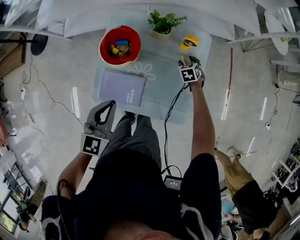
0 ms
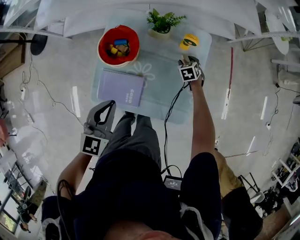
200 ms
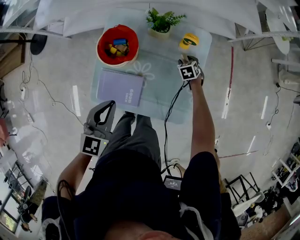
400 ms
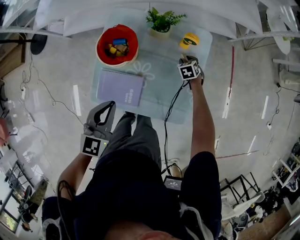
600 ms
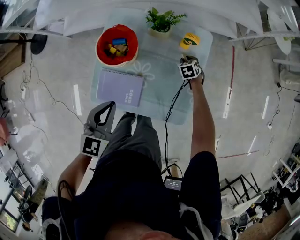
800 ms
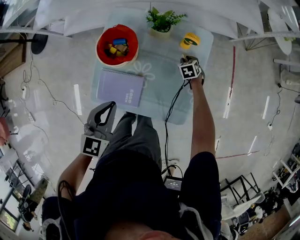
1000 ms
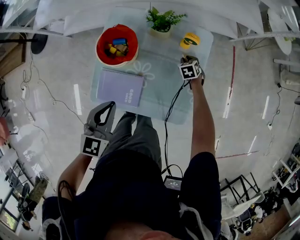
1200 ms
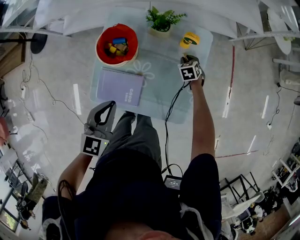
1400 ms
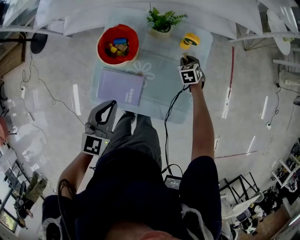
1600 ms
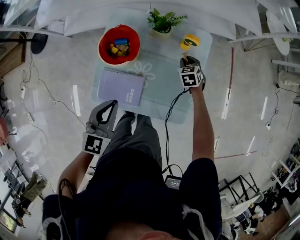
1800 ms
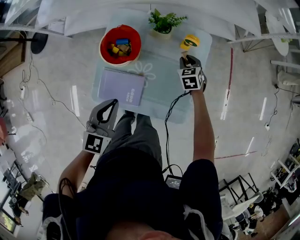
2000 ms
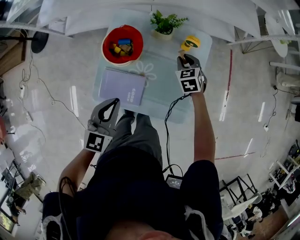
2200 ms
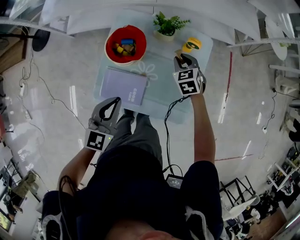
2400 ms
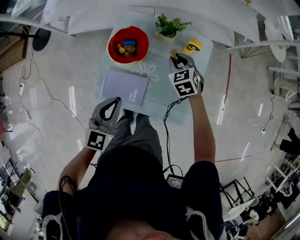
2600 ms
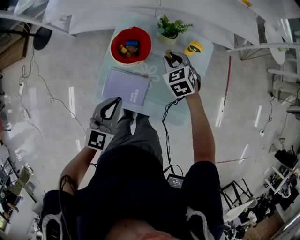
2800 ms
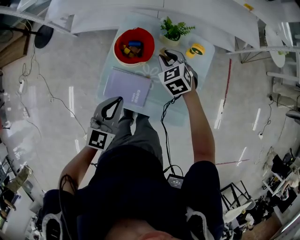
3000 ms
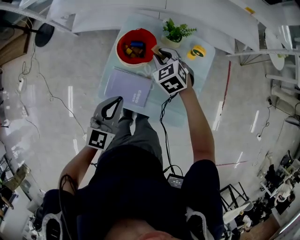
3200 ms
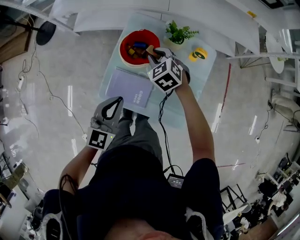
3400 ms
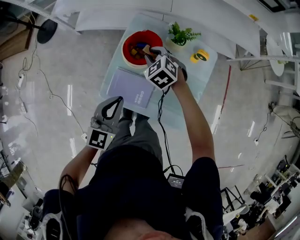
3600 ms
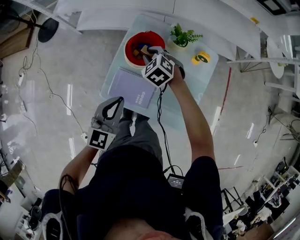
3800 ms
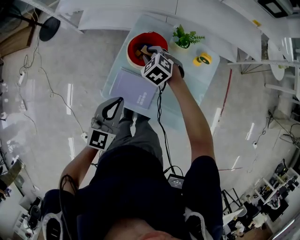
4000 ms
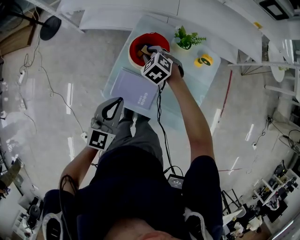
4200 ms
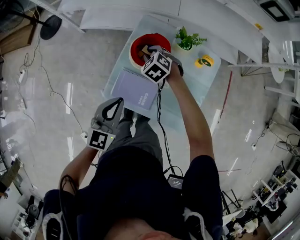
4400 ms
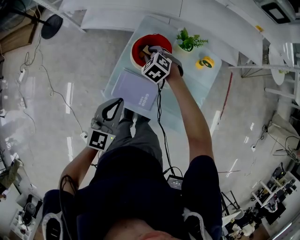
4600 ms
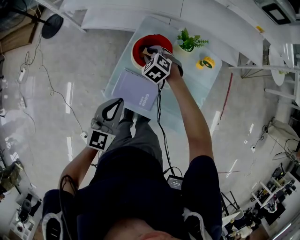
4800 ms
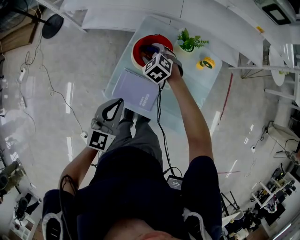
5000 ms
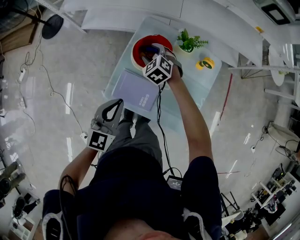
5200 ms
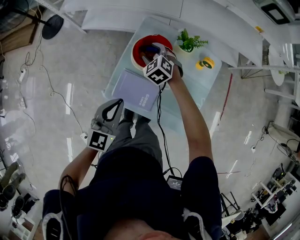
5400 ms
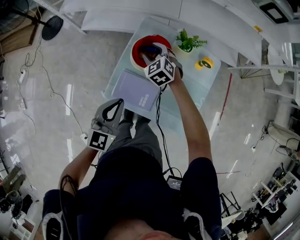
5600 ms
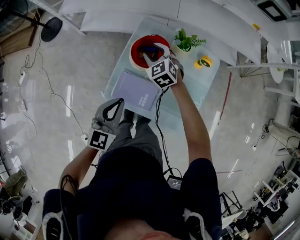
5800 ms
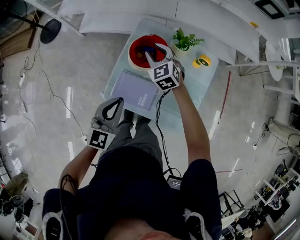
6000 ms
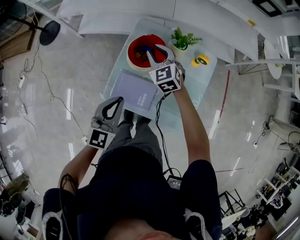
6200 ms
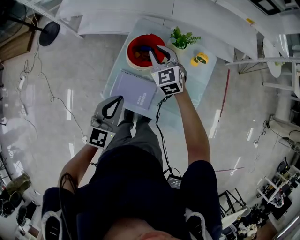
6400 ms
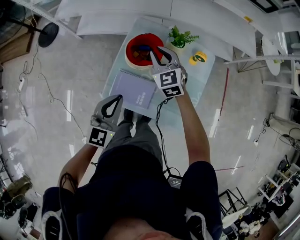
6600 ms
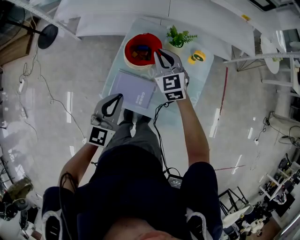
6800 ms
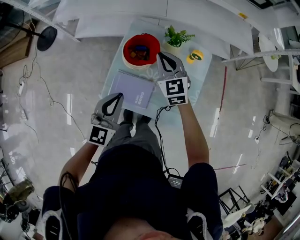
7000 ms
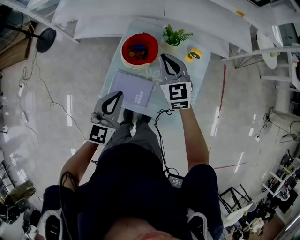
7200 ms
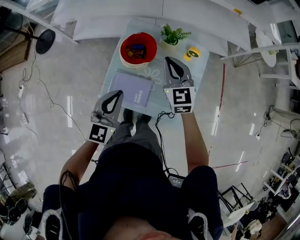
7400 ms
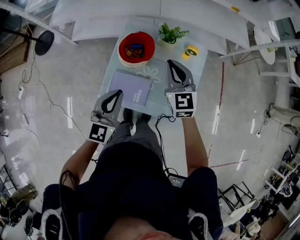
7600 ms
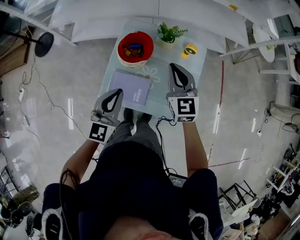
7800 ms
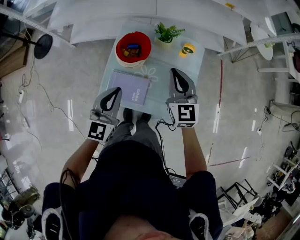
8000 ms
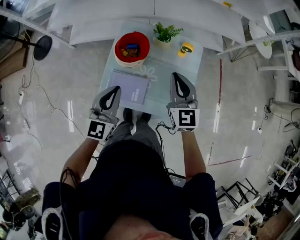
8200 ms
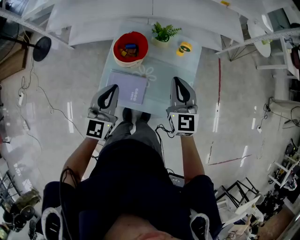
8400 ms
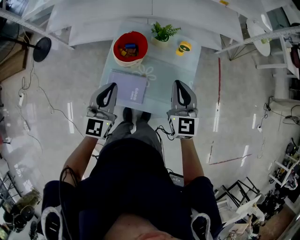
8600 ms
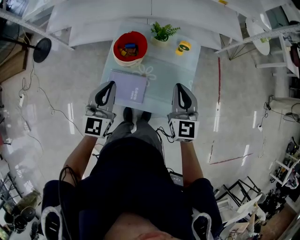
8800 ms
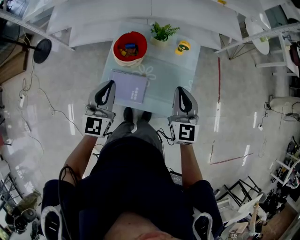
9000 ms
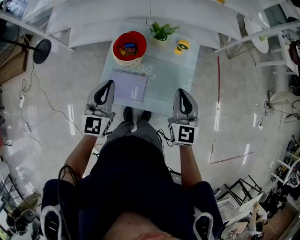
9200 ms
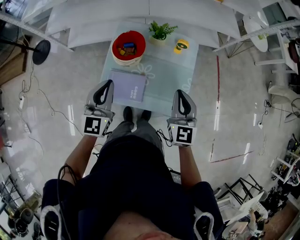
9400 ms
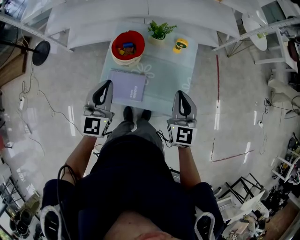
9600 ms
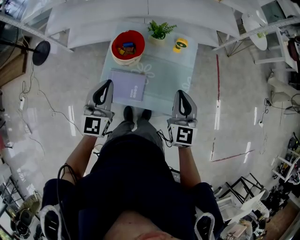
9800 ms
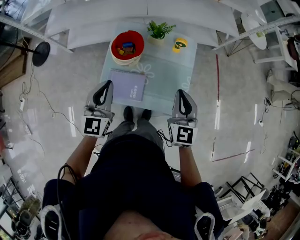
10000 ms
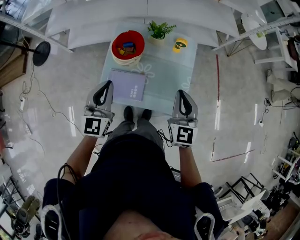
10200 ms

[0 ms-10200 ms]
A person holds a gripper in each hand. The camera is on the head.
0 ms to 1400 ms: The right gripper closes its fingers.
1400 ms to 3000 ms: The right gripper moves upward and to the left, approximately 30 cm, and turns by roughly 30 degrees.
3000 ms to 4400 ms: The left gripper travels to the left by some 5 cm; the right gripper travels to the left by roughly 15 cm, and swivels roughly 20 degrees.
4400 ms to 5800 ms: The grippers stay close to where they were, moving slightly.
5800 ms to 7200 ms: The right gripper goes roughly 15 cm upward, to the right and backward, changes its angle by about 30 degrees, and closes.
7200 ms to 8800 ms: The right gripper travels backward and to the right by about 20 cm, and swivels approximately 20 degrees.
8800 ms to 10200 ms: The right gripper ends up roughly 5 cm from where it was.

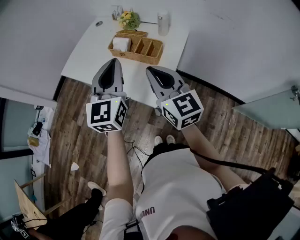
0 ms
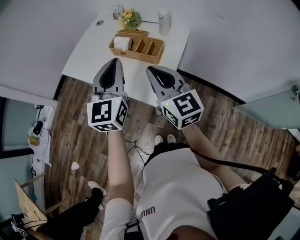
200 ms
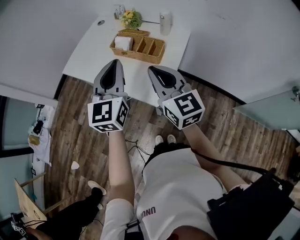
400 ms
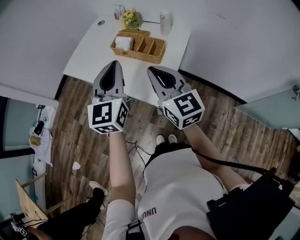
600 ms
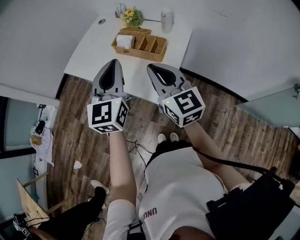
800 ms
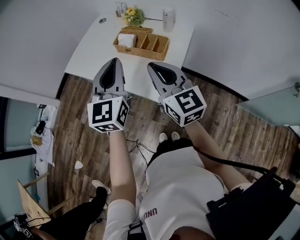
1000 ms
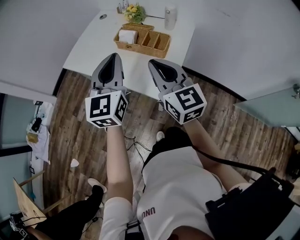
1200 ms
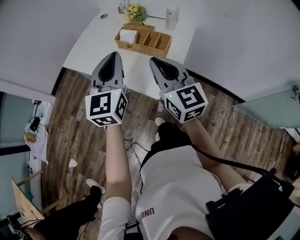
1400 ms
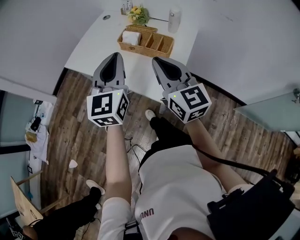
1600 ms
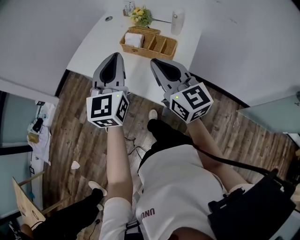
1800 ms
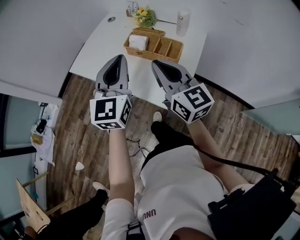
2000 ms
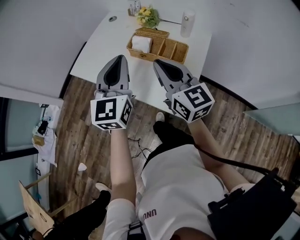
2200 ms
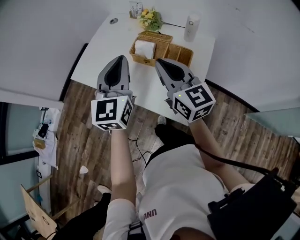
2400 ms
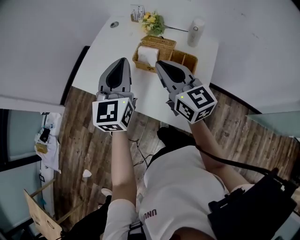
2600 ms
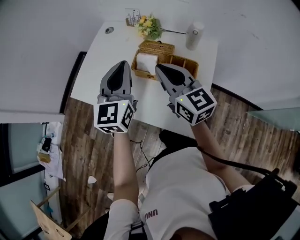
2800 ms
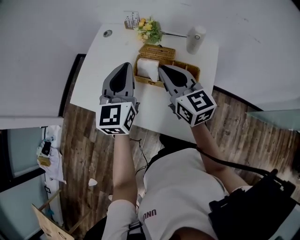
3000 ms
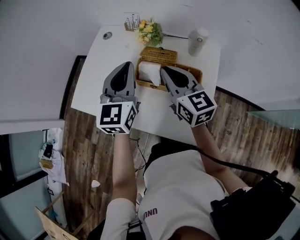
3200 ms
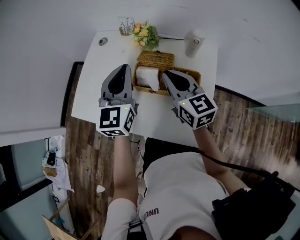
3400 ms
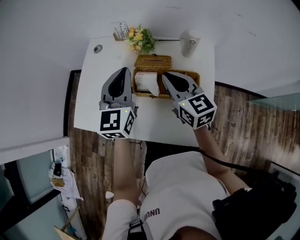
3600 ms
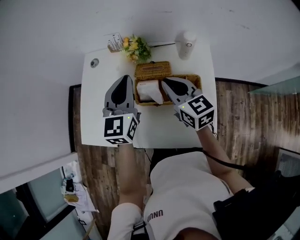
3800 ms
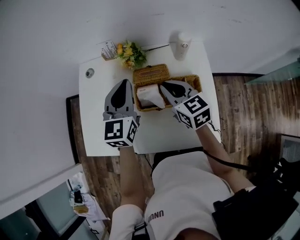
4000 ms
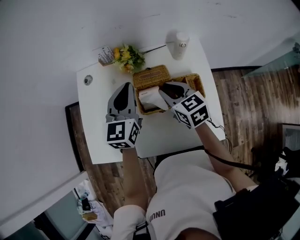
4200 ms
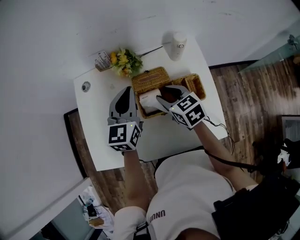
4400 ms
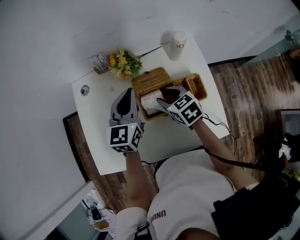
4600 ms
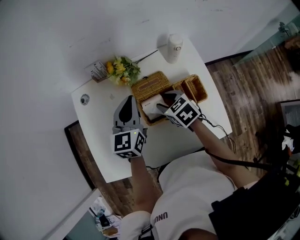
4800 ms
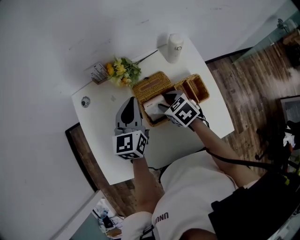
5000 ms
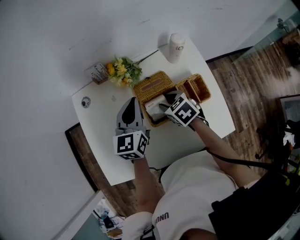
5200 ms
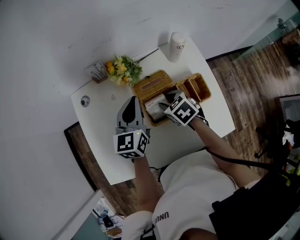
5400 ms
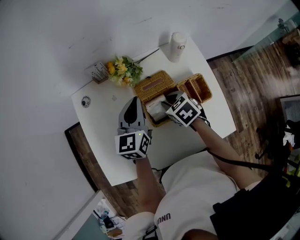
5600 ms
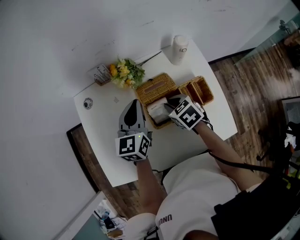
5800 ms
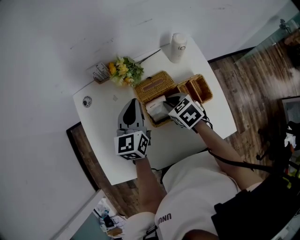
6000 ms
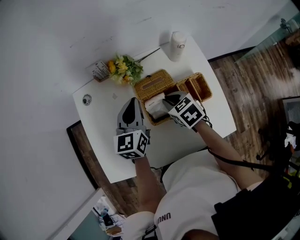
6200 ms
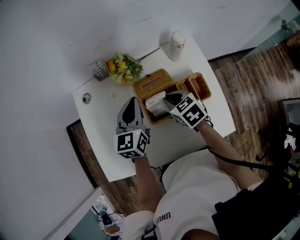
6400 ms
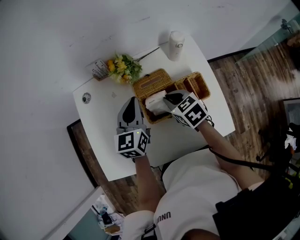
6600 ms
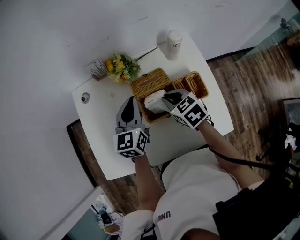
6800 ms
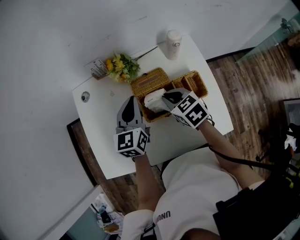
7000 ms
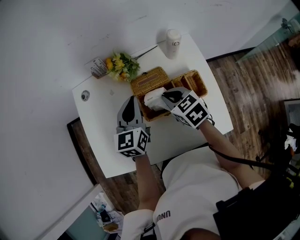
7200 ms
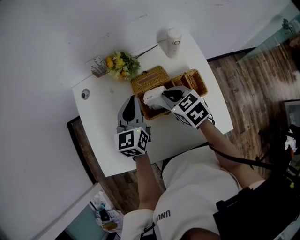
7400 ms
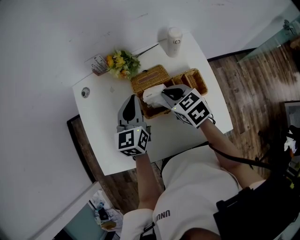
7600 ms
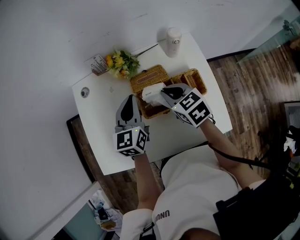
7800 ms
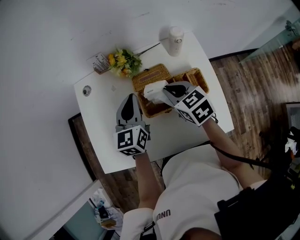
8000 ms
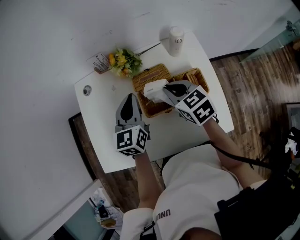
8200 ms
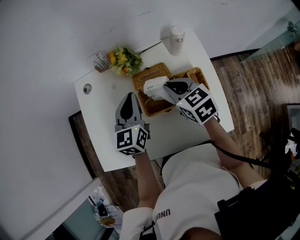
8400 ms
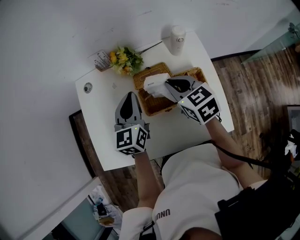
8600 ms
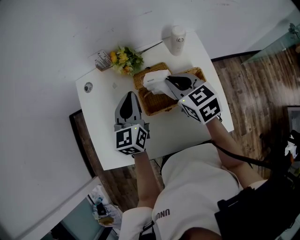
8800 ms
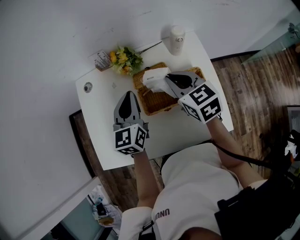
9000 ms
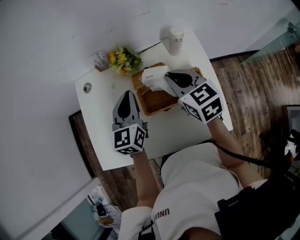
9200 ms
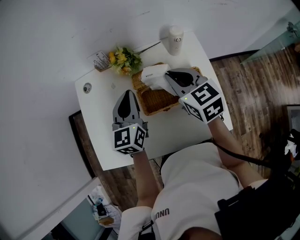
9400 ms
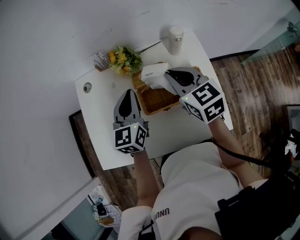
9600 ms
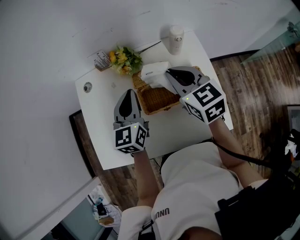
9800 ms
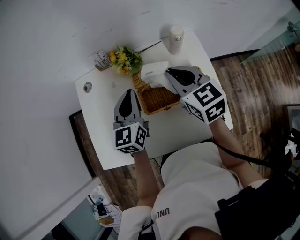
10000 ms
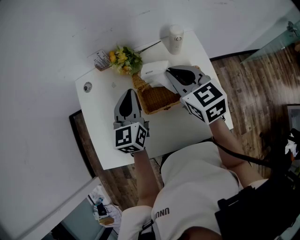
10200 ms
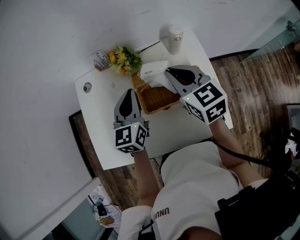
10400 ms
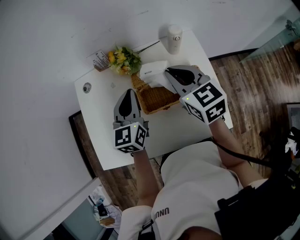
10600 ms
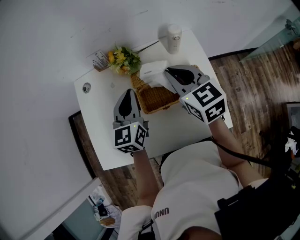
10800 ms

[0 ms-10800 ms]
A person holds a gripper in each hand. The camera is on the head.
0 ms to 1600 ms: The left gripper moves roughly 5 cm.
1600 ms to 3000 ms: Both grippers move forward, about 20 cm.
3000 ms to 4600 ms: The right gripper is displaced downward and forward by some 20 cm, tips its fingers downward by approximately 40 degrees, and opens up, while the left gripper moves forward and downward, roughly 20 cm, and swivels some 30 degrees.
4600 ms to 6200 ms: The right gripper closes its fingers.
6200 ms to 7800 ms: The right gripper heads upward, covering approximately 5 cm.
7800 ms to 9200 ms: The right gripper heads upward, covering some 5 cm.
9200 ms to 10800 ms: The grippers stay close to where they were, moving slightly.

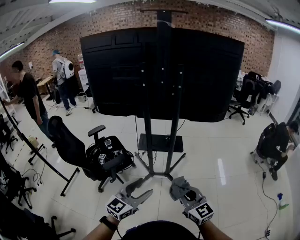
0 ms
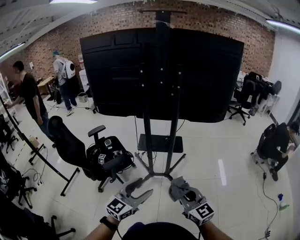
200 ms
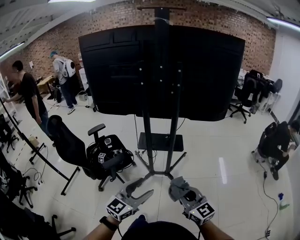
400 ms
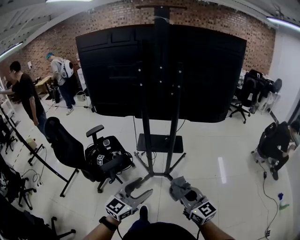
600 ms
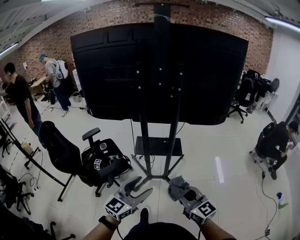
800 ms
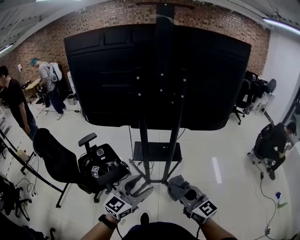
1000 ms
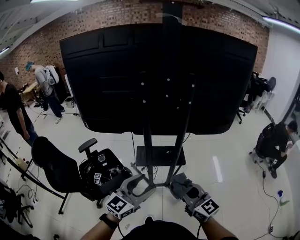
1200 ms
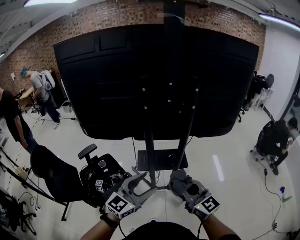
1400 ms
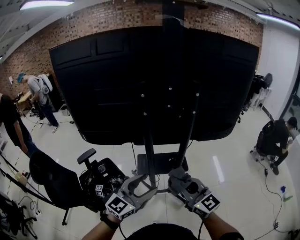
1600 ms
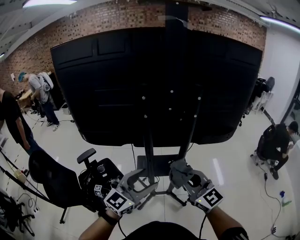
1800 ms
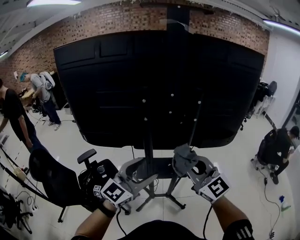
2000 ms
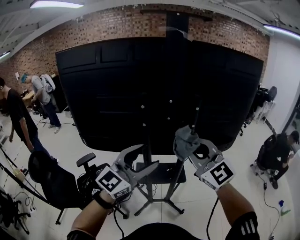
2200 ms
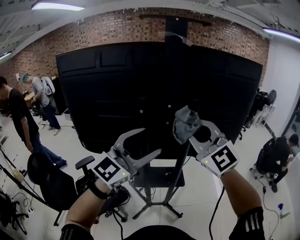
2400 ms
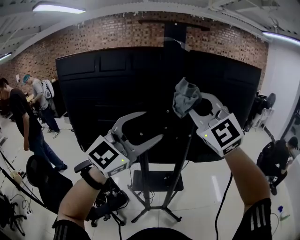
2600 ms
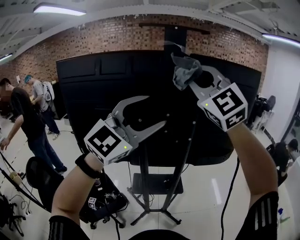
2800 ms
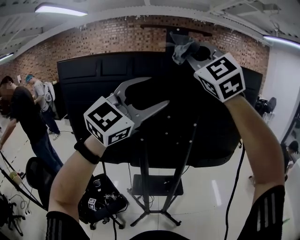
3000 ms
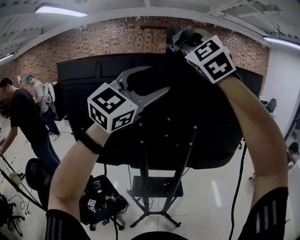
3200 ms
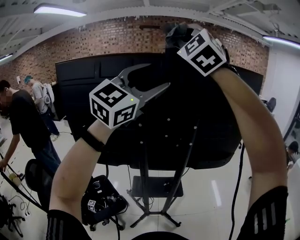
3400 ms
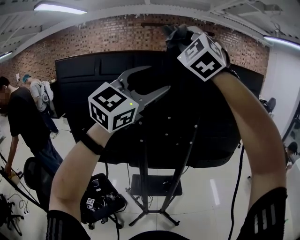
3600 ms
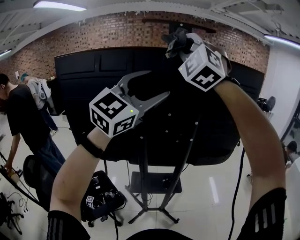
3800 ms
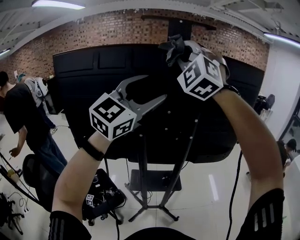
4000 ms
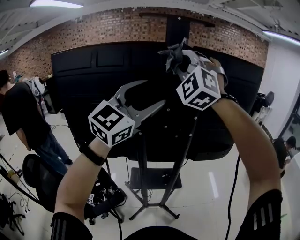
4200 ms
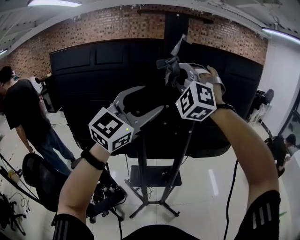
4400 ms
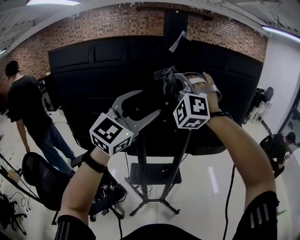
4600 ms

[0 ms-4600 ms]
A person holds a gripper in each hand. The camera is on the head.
0 ms to 1600 ms: Both grippers travel together forward, some 25 cm.
1600 ms to 3000 ms: The left gripper moves upward, some 40 cm, and rotates some 40 degrees, while the right gripper heads upward and forward, covering approximately 50 cm, and rolls counterclockwise, seen from behind, by roughly 60 degrees.
3000 ms to 4600 ms: The right gripper travels downward by about 20 cm, and swivels about 40 degrees, while the left gripper goes roughly 10 cm downward.
